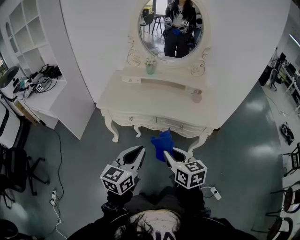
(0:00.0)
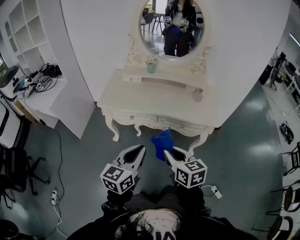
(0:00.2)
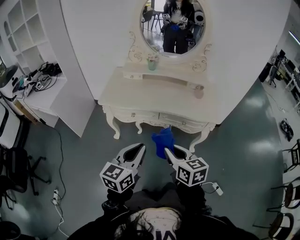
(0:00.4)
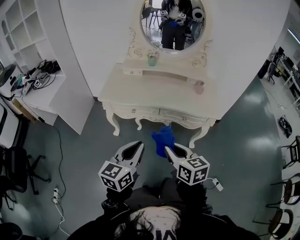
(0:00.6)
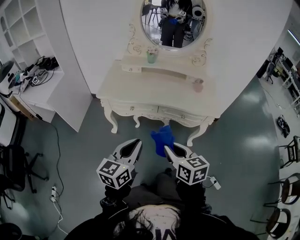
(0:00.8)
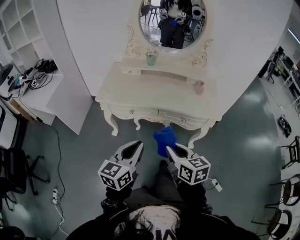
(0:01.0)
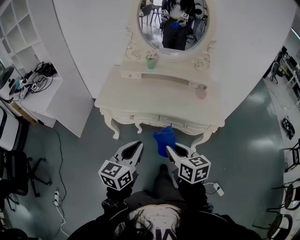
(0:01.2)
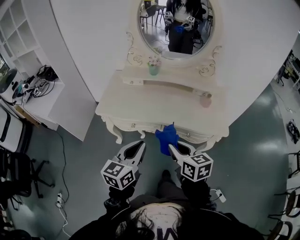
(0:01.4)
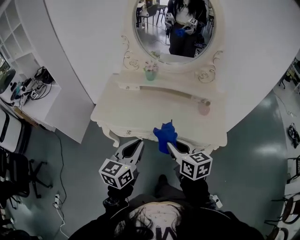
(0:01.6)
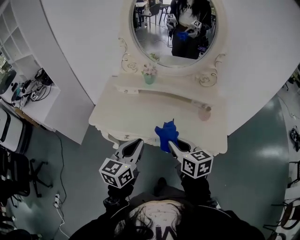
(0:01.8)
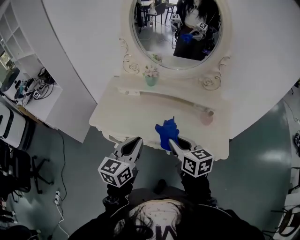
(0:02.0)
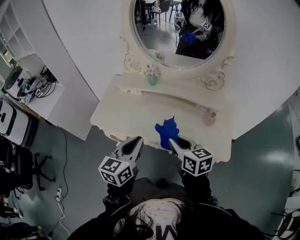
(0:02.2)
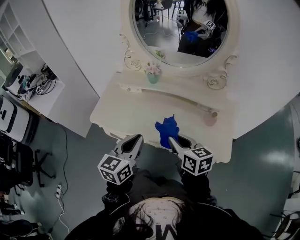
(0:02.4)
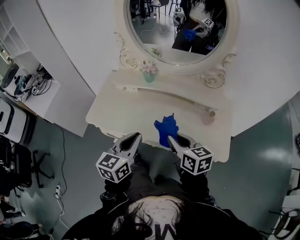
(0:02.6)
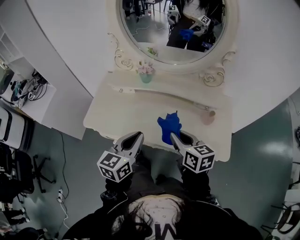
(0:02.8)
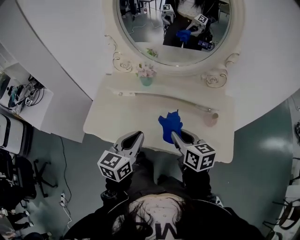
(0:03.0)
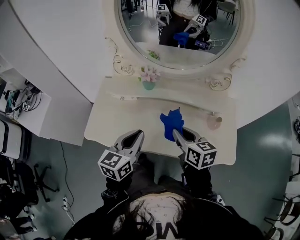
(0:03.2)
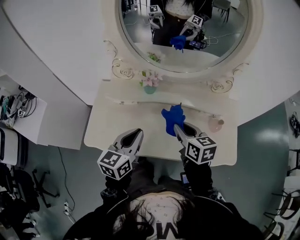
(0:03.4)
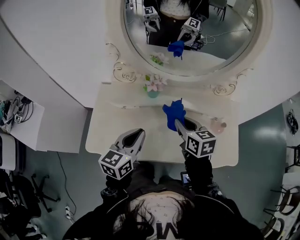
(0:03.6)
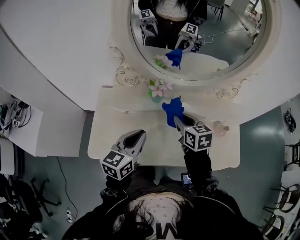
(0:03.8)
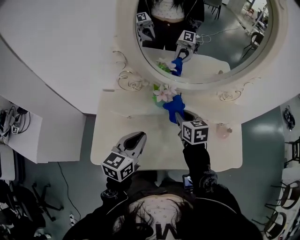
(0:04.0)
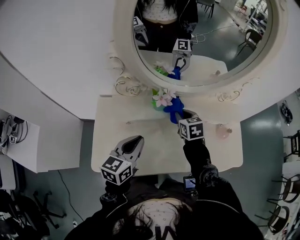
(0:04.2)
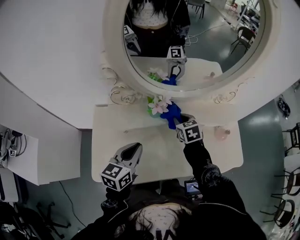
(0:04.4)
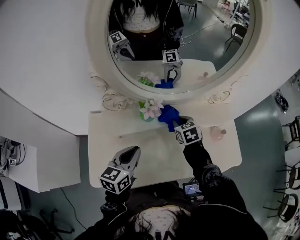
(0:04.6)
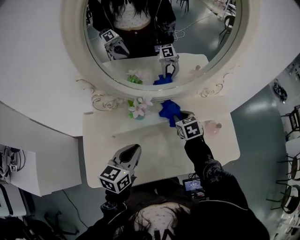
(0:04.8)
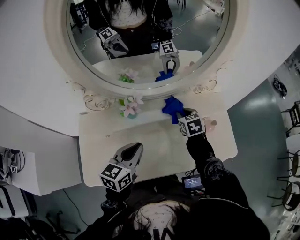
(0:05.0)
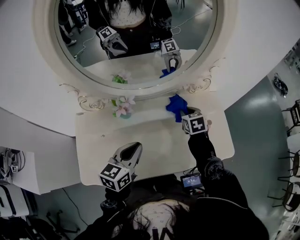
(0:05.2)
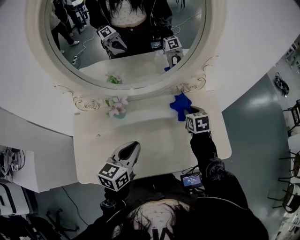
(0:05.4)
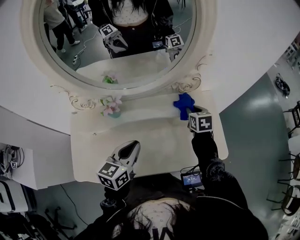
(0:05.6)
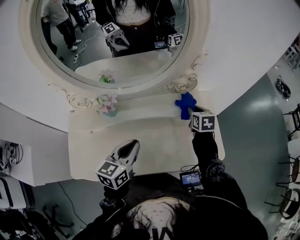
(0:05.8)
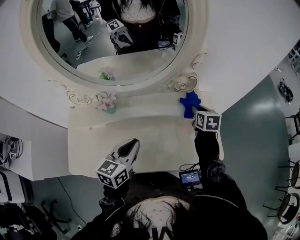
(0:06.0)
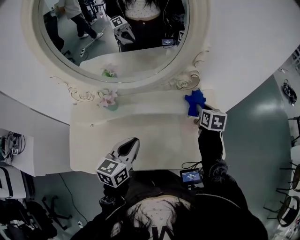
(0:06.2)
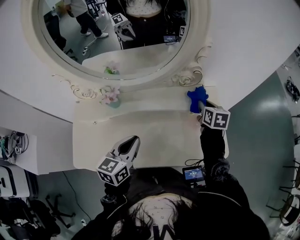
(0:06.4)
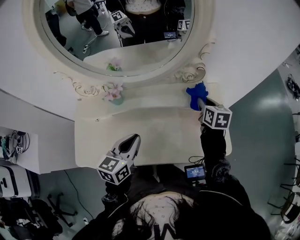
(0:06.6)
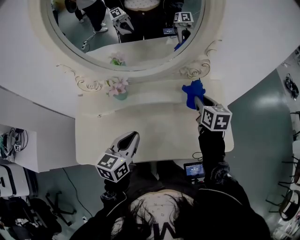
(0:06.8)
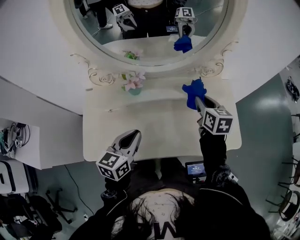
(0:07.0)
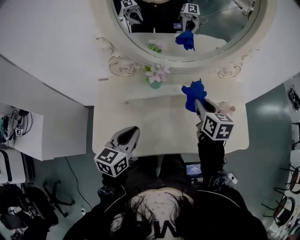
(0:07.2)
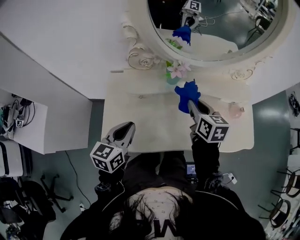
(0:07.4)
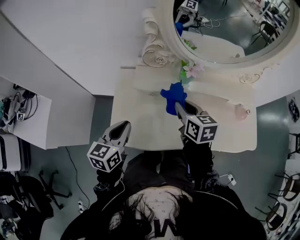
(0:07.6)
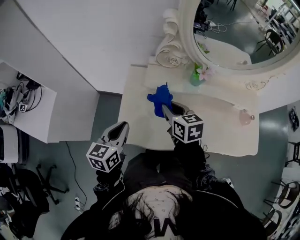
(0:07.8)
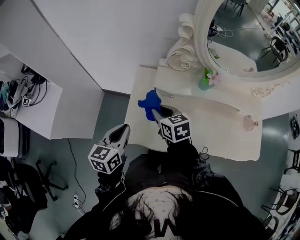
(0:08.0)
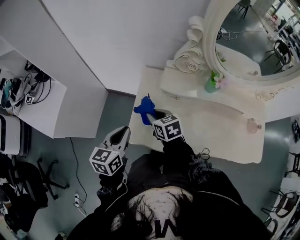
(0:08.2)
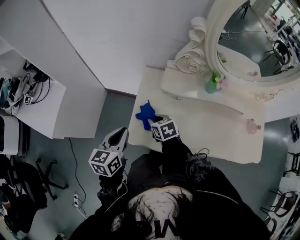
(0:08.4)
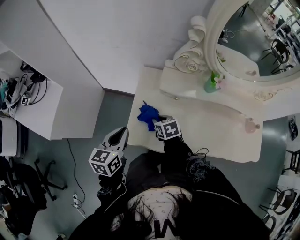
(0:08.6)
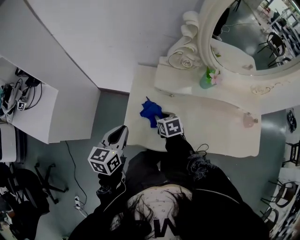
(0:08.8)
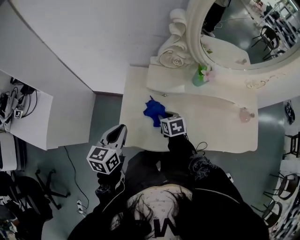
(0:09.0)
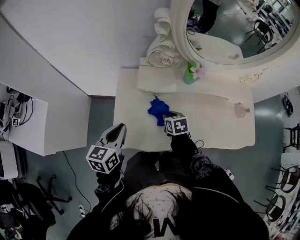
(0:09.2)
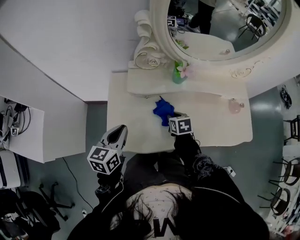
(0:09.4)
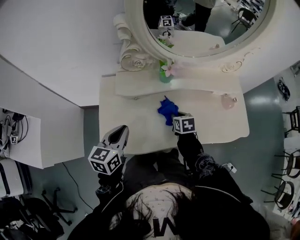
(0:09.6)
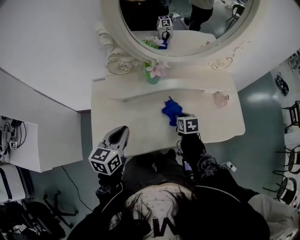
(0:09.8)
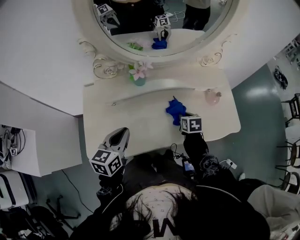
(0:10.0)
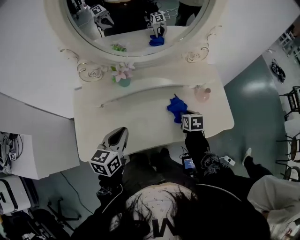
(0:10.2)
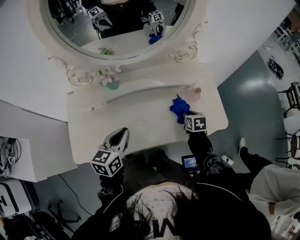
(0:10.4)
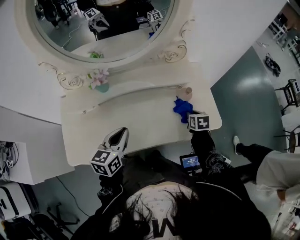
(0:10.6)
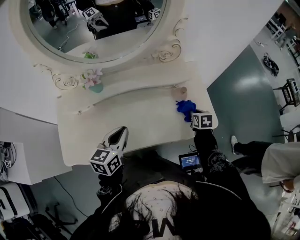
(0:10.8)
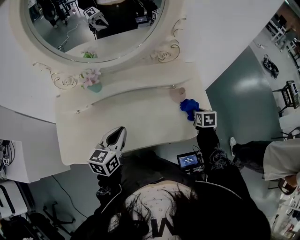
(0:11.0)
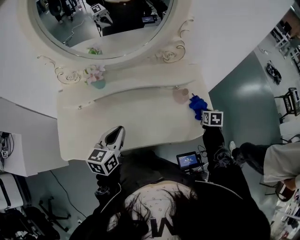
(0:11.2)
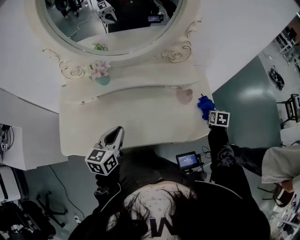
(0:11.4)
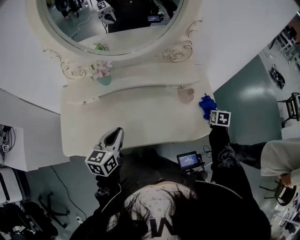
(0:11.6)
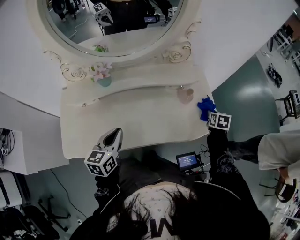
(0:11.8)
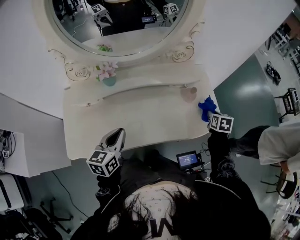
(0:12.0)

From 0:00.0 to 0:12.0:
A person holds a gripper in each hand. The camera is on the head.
From 0:00.0 to 0:01.6: Both grippers travel together forward, about 20 cm.
From 0:01.6 to 0:03.0: The grippers both shift forward by approximately 15 cm.
From 0:03.0 to 0:04.4: The left gripper shifts some 20 cm forward and to the left. Meanwhile the right gripper moves forward, approximately 25 cm, and turns by some 40 degrees.
From 0:04.4 to 0:06.0: The left gripper shifts some 20 cm to the right, while the right gripper shifts roughly 30 cm to the right, and changes its angle by about 30 degrees.
From 0:06.0 to 0:07.6: The left gripper goes approximately 35 cm to the left. The right gripper moves to the left and backward, approximately 50 cm, and changes its angle by some 20 degrees.
From 0:07.6 to 0:09.0: The right gripper shifts some 20 cm downward and to the left, and rotates some 30 degrees. Meanwhile the left gripper heads to the left, covering approximately 10 cm.
From 0:09.0 to 0:10.4: The right gripper moves approximately 50 cm, and rotates about 30 degrees. The left gripper shifts by some 35 cm.
From 0:10.4 to 0:12.0: The right gripper is displaced to the right by about 15 cm.

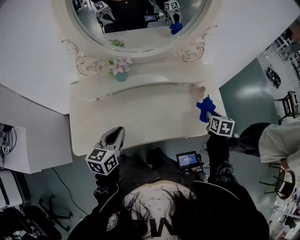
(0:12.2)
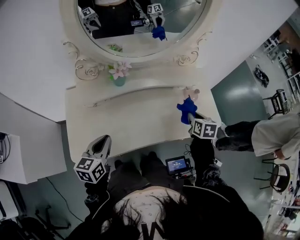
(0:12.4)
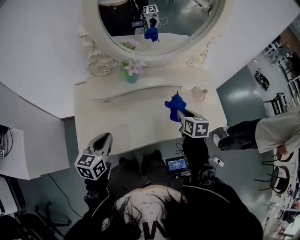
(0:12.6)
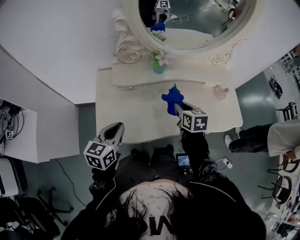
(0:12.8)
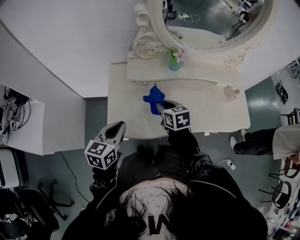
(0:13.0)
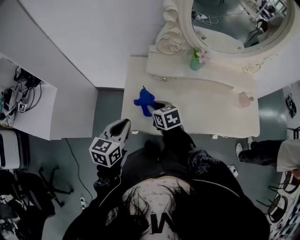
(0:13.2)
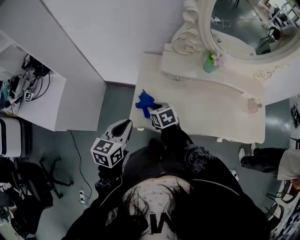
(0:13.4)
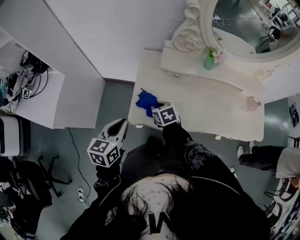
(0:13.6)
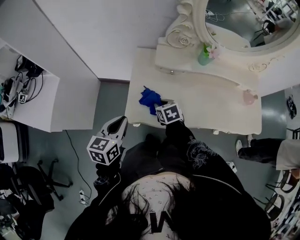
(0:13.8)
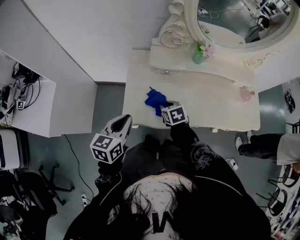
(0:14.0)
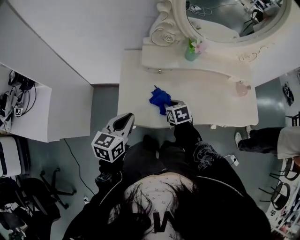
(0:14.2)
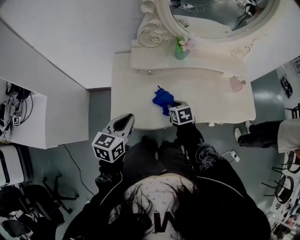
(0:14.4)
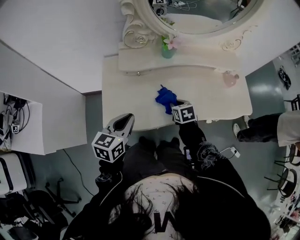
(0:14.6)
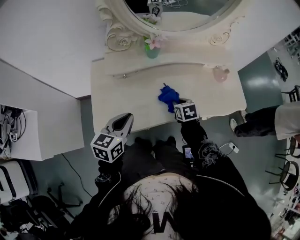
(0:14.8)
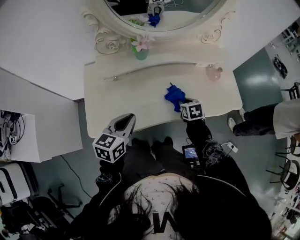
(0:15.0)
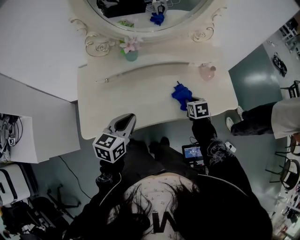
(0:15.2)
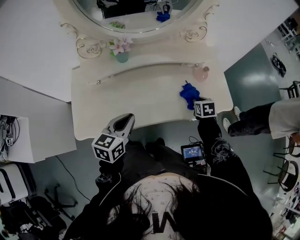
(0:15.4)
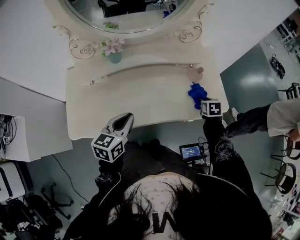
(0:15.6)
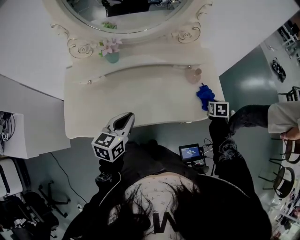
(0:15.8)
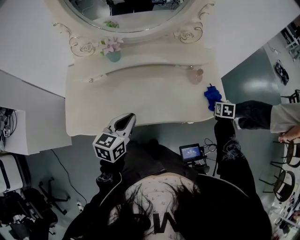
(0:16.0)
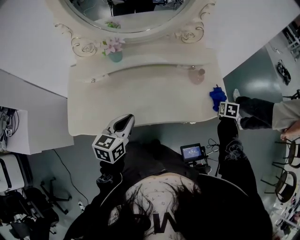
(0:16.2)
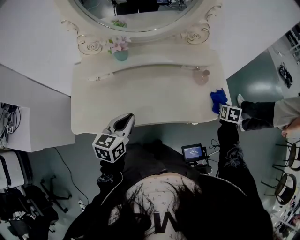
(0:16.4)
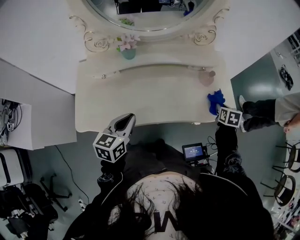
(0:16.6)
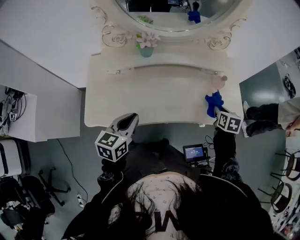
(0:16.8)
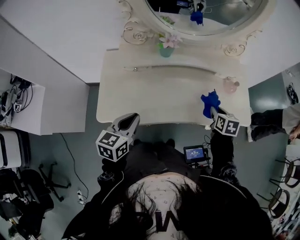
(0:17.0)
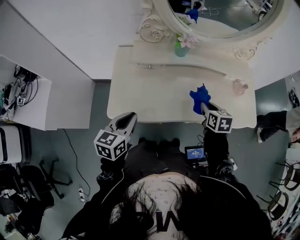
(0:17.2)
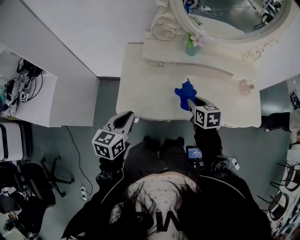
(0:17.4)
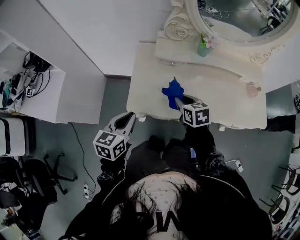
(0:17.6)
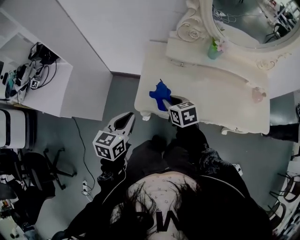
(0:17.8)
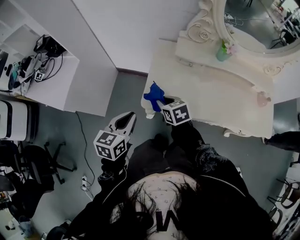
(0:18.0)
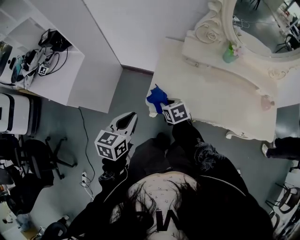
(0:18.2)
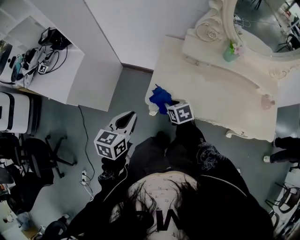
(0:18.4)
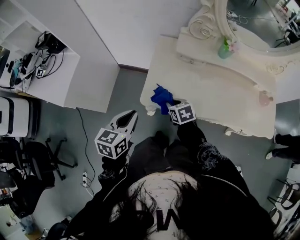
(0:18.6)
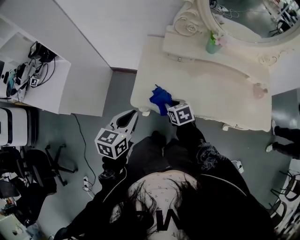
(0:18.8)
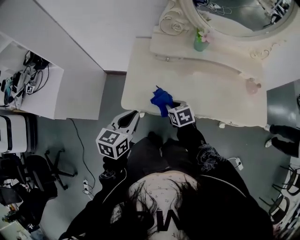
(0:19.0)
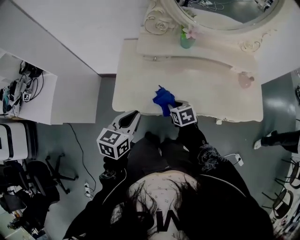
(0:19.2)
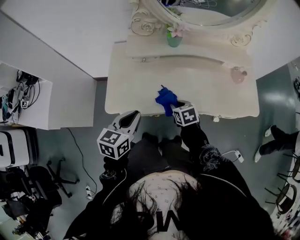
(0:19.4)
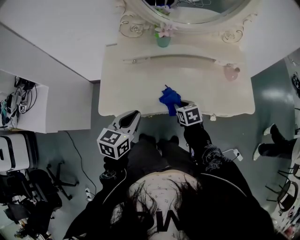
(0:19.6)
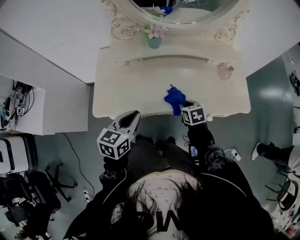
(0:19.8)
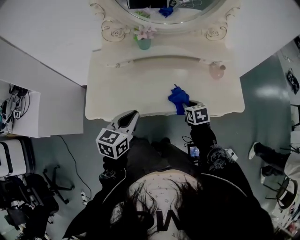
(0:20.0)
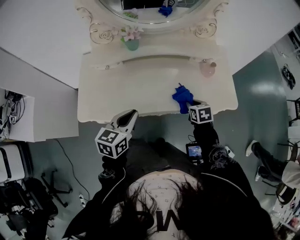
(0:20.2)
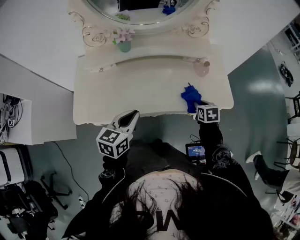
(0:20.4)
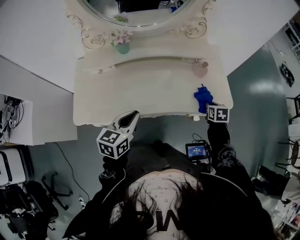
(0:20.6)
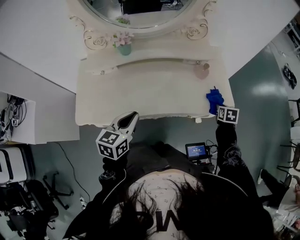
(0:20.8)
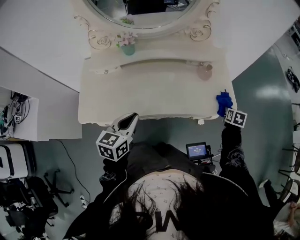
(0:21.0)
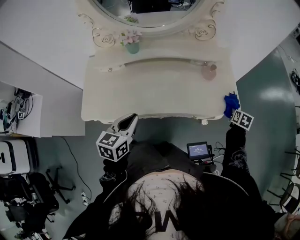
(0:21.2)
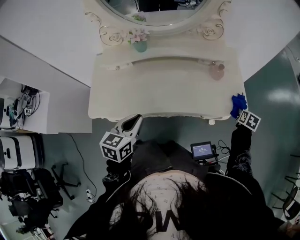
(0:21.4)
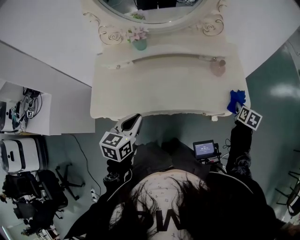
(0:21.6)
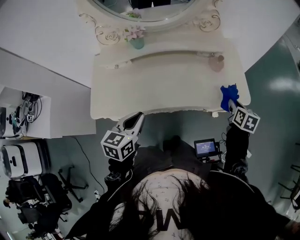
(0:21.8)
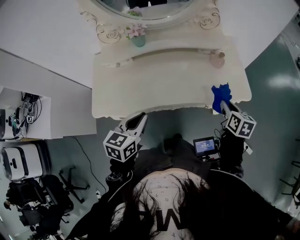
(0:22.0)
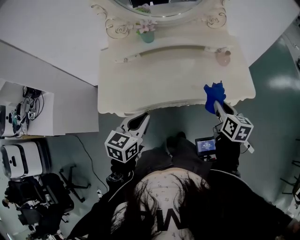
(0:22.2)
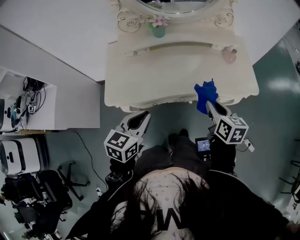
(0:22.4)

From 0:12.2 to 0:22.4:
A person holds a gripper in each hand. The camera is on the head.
From 0:12.2 to 0:13.6: The right gripper moves about 70 cm, and swivels some 50 degrees, while the left gripper moves about 35 cm.
From 0:13.6 to 0:15.2: The right gripper shifts by approximately 50 cm, and turns by roughly 30 degrees; the left gripper moves about 35 cm, and turns by approximately 20 degrees.
From 0:15.2 to 0:16.6: The right gripper shifts approximately 20 cm to the right.
From 0:16.6 to 0:18.0: The right gripper shifts by roughly 70 cm, and turns by about 60 degrees, while the left gripper changes place by about 40 cm.
From 0:18.0 to 0:19.4: The grippers both shift to the right by approximately 25 cm.
From 0:19.4 to 0:21.0: The left gripper changes place by approximately 20 cm; the right gripper ends up some 50 cm from where it was, and turns by some 40 degrees.
From 0:21.0 to 0:22.4: The left gripper is displaced backward and to the left by roughly 15 cm, while the right gripper shifts approximately 40 cm to the left, backward and upward, and turns by about 40 degrees.

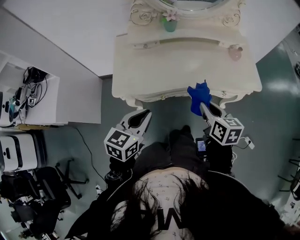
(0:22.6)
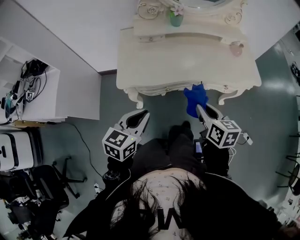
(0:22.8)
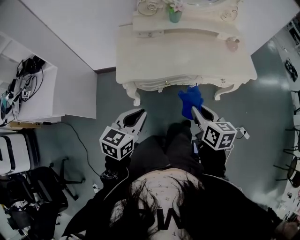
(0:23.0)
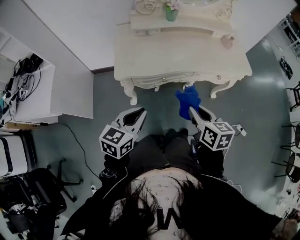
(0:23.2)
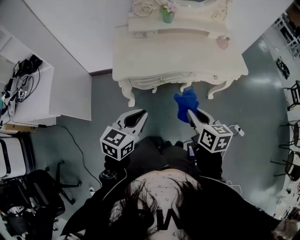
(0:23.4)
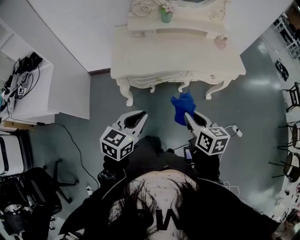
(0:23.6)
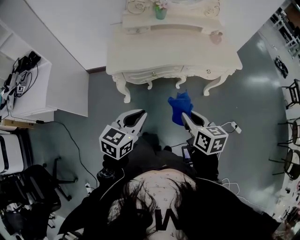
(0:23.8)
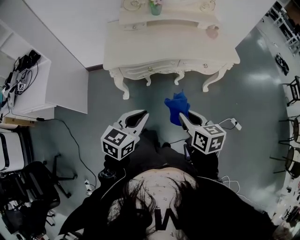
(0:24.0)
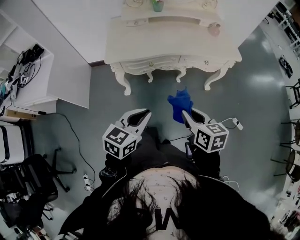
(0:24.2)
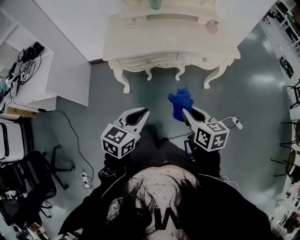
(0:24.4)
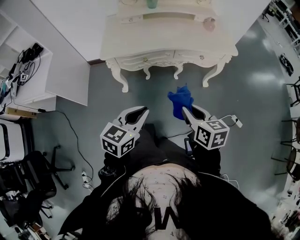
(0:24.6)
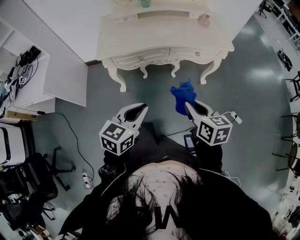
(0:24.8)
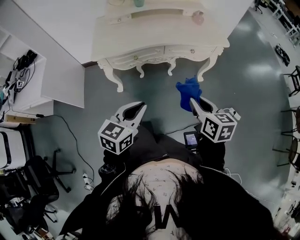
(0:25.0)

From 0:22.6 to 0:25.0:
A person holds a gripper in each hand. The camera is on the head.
From 0:22.6 to 0:23.8: The grippers both shift backward by roughly 20 cm.
From 0:23.8 to 0:25.0: The left gripper is displaced to the right and backward by approximately 15 cm. Meanwhile the right gripper shifts some 15 cm to the right.
